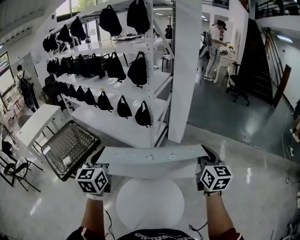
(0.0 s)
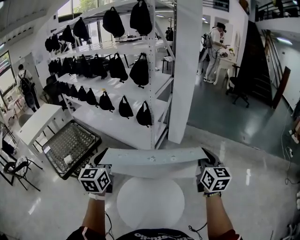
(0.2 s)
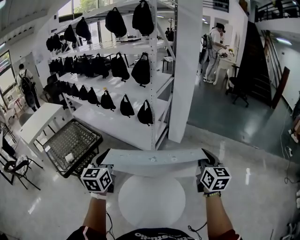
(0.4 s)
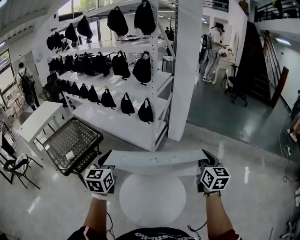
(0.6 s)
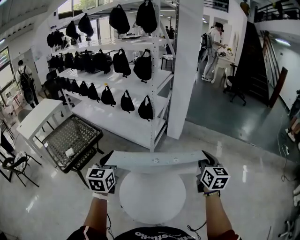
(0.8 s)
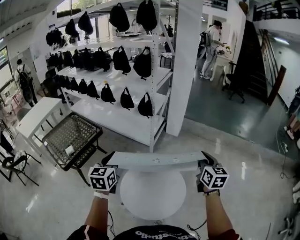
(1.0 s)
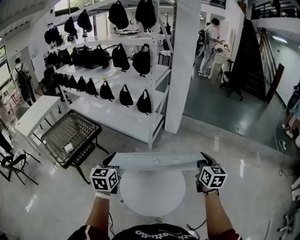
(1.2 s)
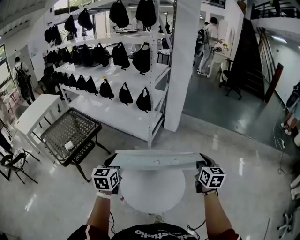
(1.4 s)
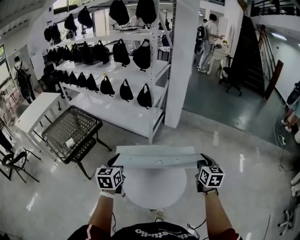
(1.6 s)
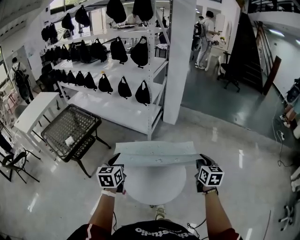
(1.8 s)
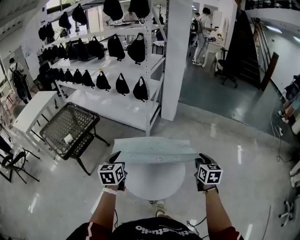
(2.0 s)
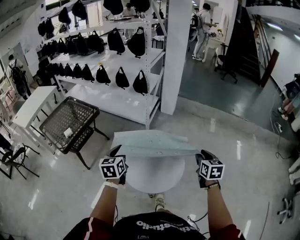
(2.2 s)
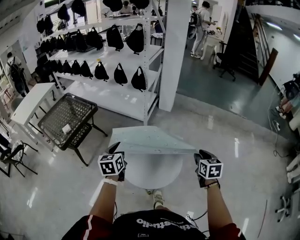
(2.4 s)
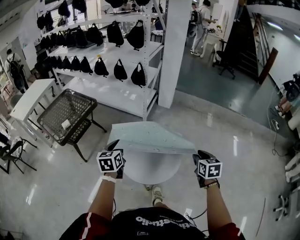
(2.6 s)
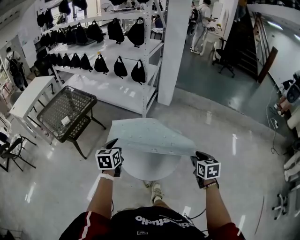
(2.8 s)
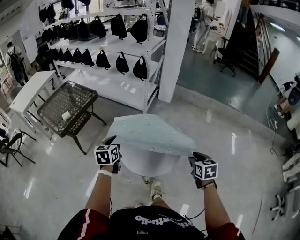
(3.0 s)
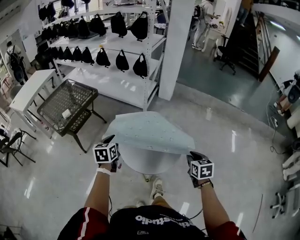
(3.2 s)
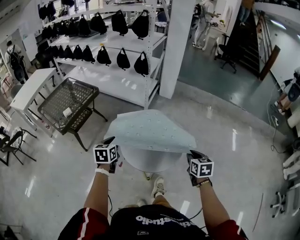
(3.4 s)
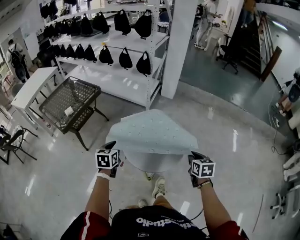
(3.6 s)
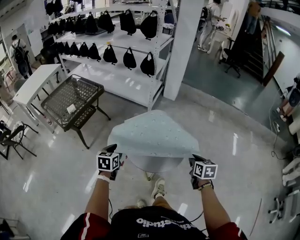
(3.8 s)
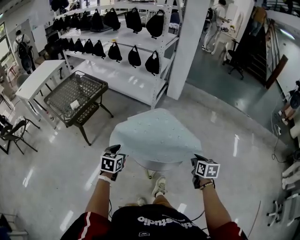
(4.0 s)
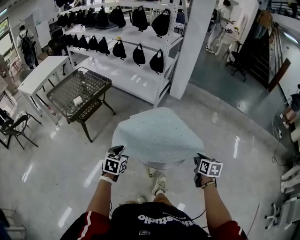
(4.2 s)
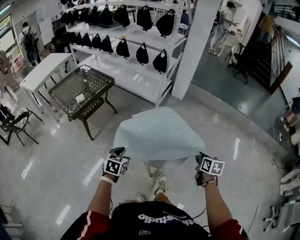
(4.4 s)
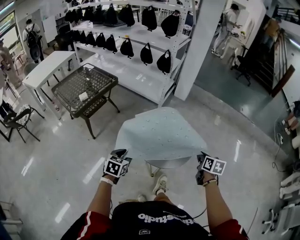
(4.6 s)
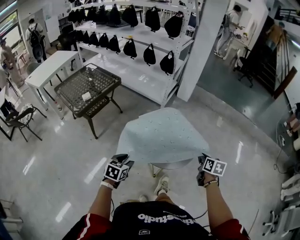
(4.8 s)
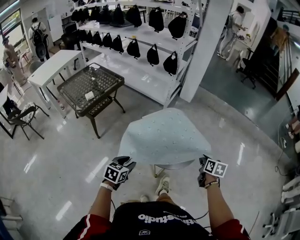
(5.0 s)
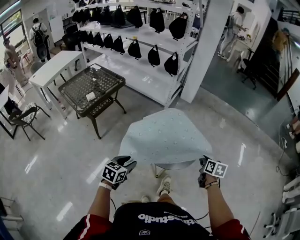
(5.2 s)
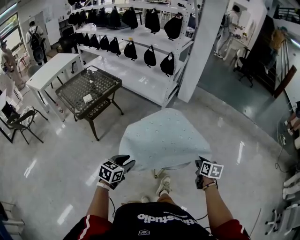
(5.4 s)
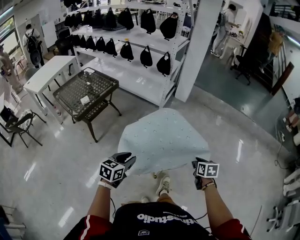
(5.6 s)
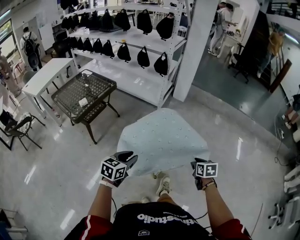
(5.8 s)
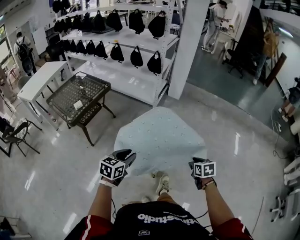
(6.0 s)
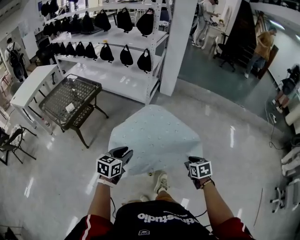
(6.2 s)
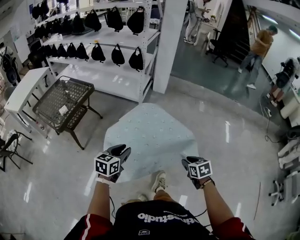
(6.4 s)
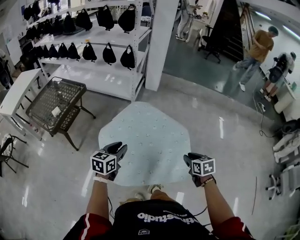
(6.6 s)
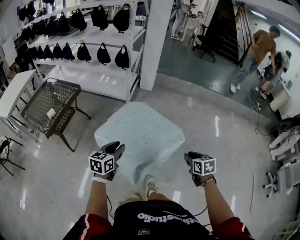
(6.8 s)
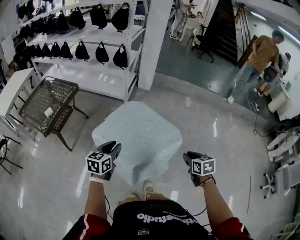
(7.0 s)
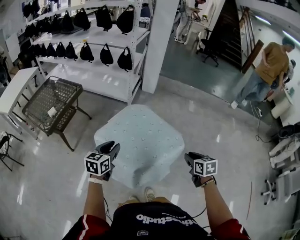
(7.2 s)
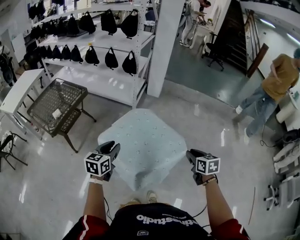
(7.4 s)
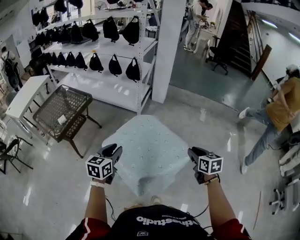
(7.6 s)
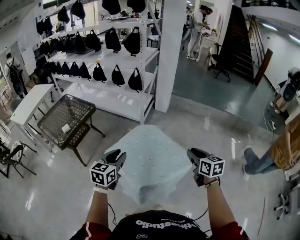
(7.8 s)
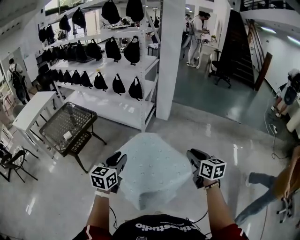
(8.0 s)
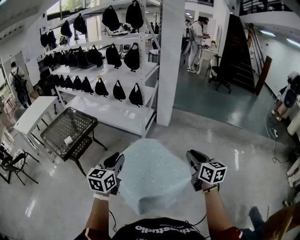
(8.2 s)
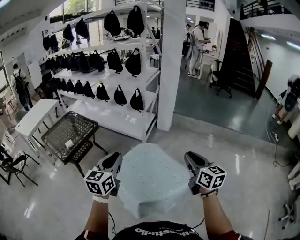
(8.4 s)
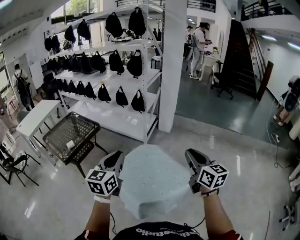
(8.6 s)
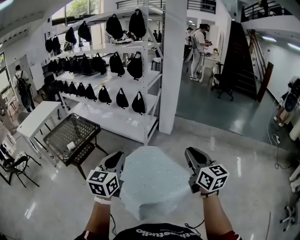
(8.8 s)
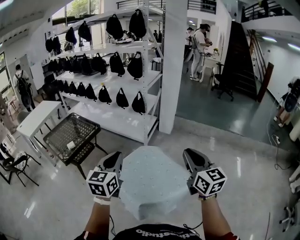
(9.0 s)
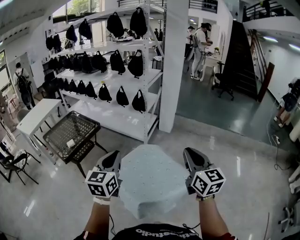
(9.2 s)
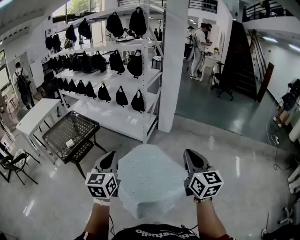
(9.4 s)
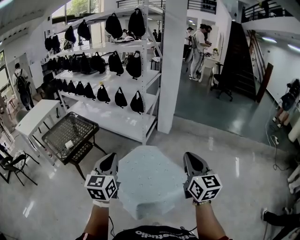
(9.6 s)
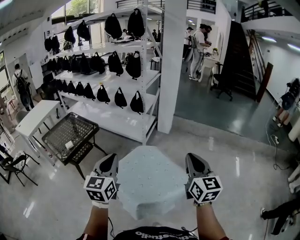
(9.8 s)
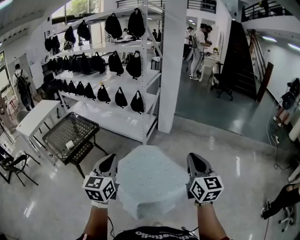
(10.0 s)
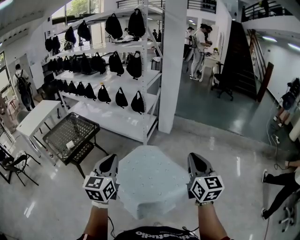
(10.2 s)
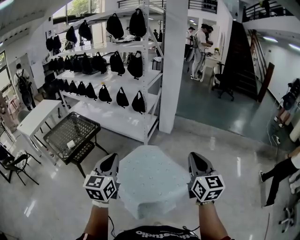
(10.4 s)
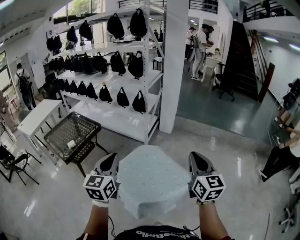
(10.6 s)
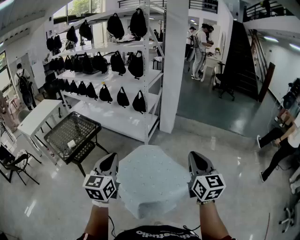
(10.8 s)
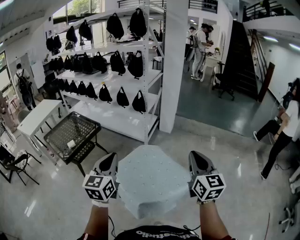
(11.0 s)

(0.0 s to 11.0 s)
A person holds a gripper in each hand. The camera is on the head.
0.0 s - 1.6 s: Both grippers travel together backward and downward, approximately 20 cm.
1.6 s - 3.2 s: The right gripper is displaced backward and downward by some 20 cm, and changes its angle by roughly 20 degrees. The left gripper travels downward and backward by some 15 cm.
3.2 s - 4.8 s: The right gripper changes place by some 5 cm. The left gripper travels backward and downward by about 20 cm, and opens.
4.8 s - 6.2 s: The right gripper travels backward by some 5 cm, and swivels some 20 degrees. Meanwhile the left gripper goes about 10 cm upward.
6.2 s - 7.8 s: The left gripper shifts some 15 cm upward and forward. Meanwhile the right gripper goes roughly 20 cm upward and forward, and turns by roughly 30 degrees.
7.8 s - 9.4 s: Both grippers move upward, roughly 15 cm. The left gripper swivels roughly 20 degrees, and closes; the right gripper rotates about 30 degrees, and closes up.
9.4 s - 11.0 s: The grippers make only small movements.

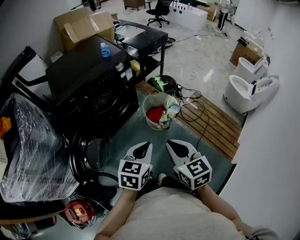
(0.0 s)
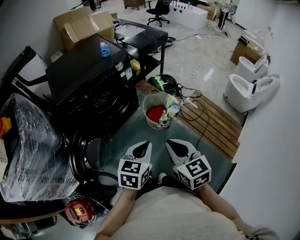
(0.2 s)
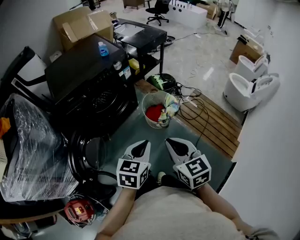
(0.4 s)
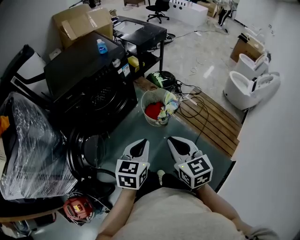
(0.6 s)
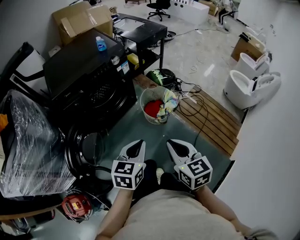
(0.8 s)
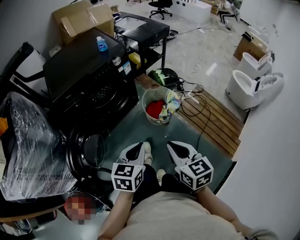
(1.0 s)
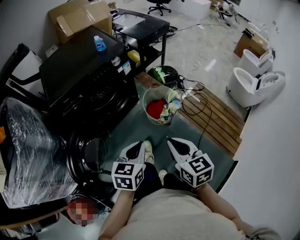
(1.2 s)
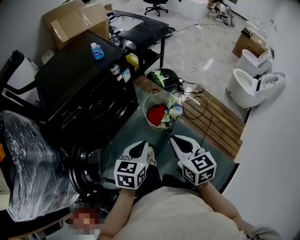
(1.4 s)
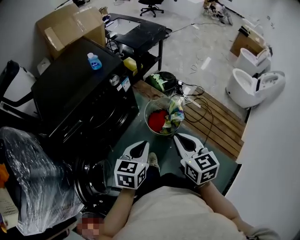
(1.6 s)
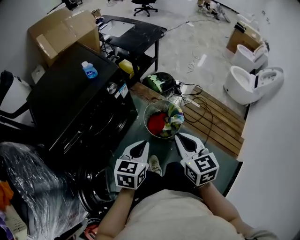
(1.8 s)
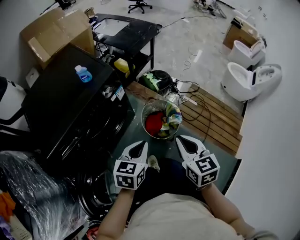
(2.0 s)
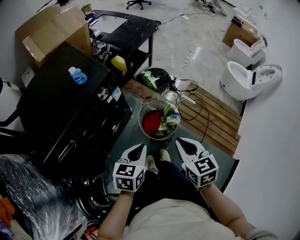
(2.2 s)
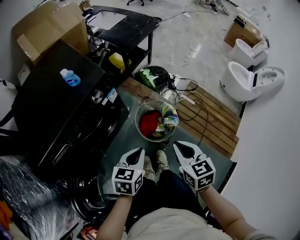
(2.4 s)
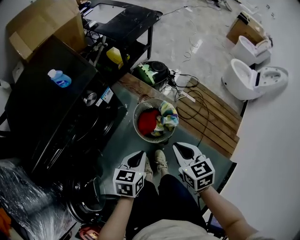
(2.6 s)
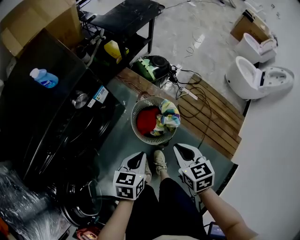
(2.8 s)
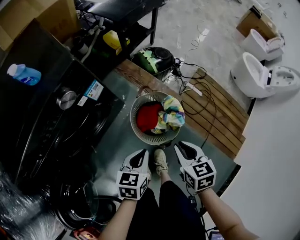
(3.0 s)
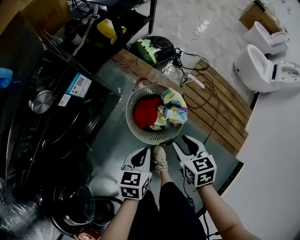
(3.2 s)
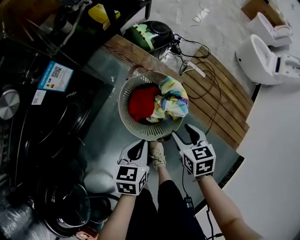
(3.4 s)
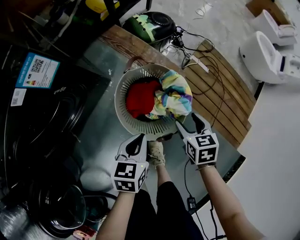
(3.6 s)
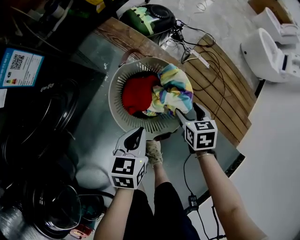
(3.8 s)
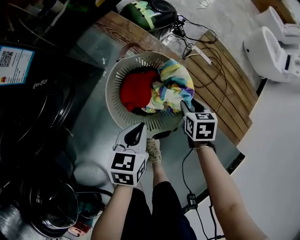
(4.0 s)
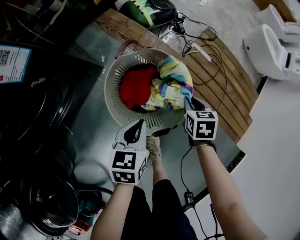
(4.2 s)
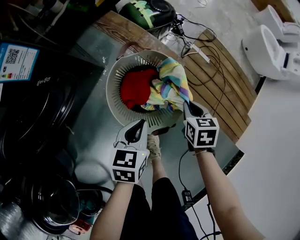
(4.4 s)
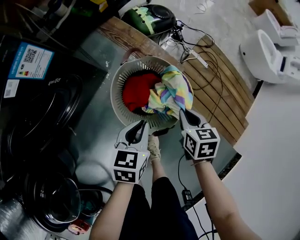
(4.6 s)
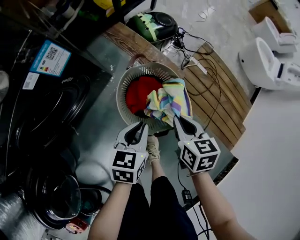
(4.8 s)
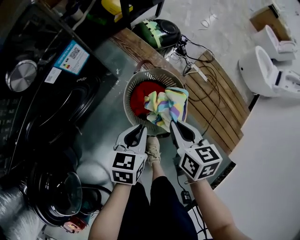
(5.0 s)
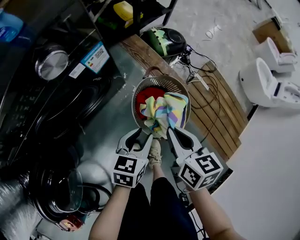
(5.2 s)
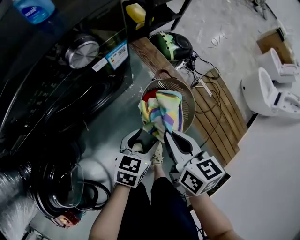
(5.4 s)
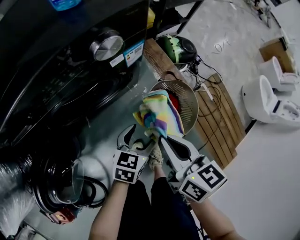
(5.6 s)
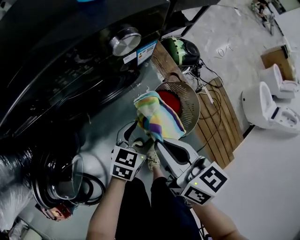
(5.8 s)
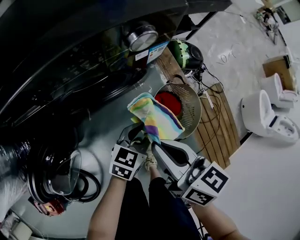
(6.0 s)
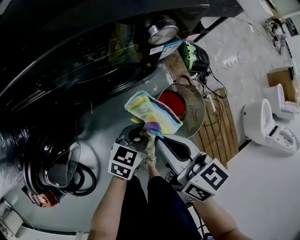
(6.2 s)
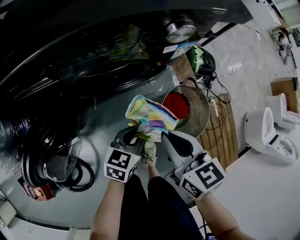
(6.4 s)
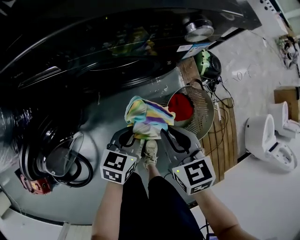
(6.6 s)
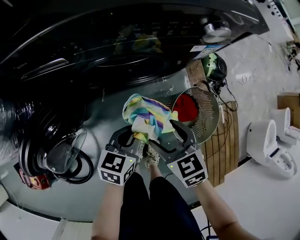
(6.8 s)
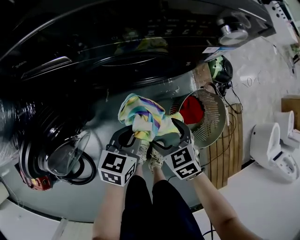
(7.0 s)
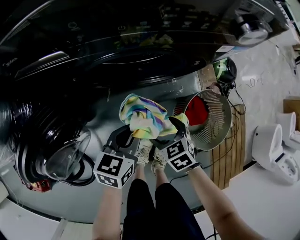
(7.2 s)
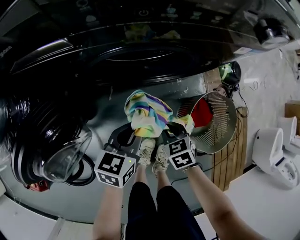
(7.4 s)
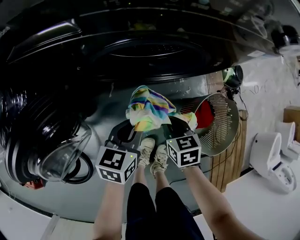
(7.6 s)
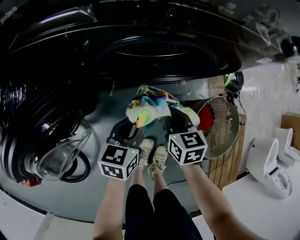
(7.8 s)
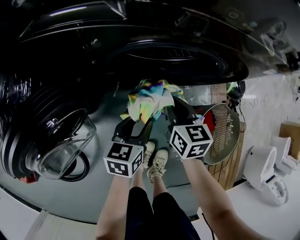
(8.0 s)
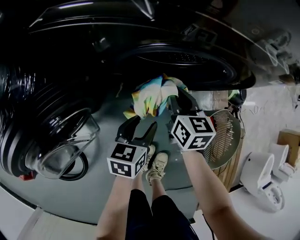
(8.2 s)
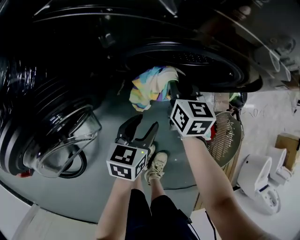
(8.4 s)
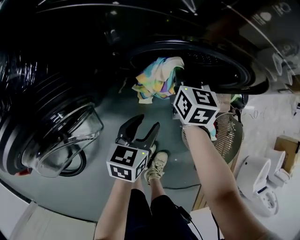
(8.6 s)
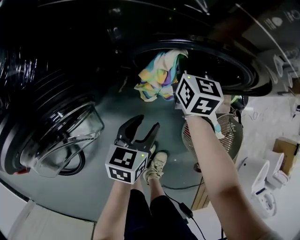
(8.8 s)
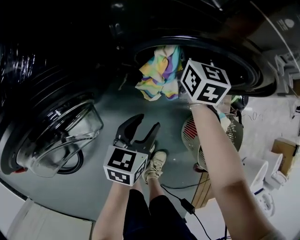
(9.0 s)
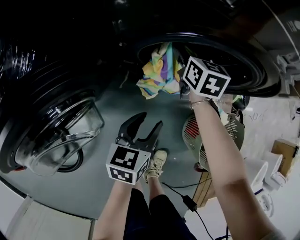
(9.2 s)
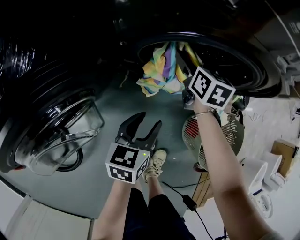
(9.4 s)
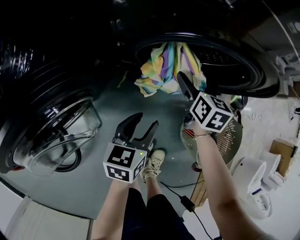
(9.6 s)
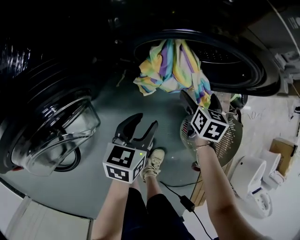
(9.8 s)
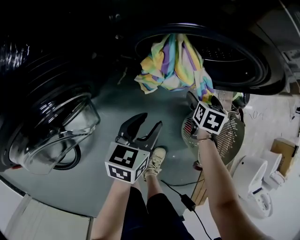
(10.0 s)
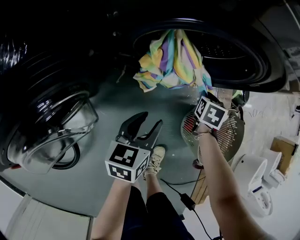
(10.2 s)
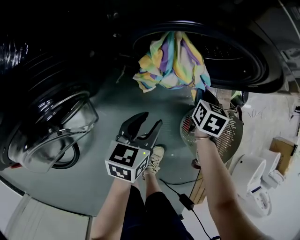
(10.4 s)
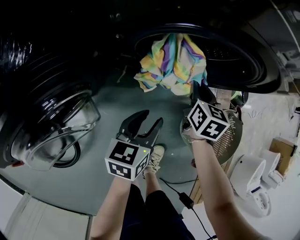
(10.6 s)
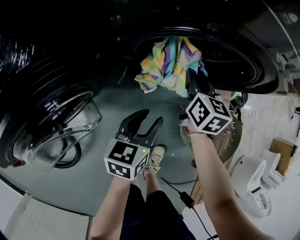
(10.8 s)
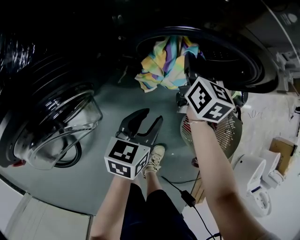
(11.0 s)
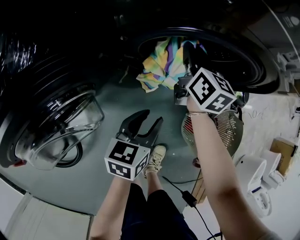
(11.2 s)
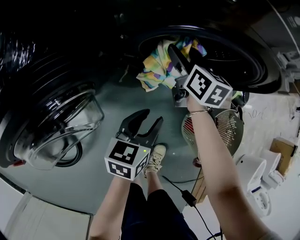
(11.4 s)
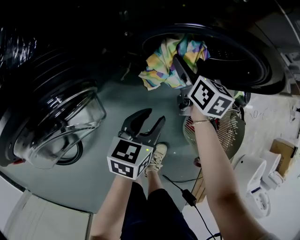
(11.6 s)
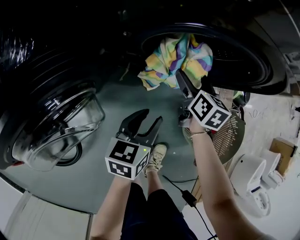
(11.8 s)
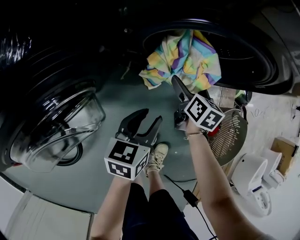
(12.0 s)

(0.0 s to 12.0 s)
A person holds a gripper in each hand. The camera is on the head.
0.0 s - 1.6 s: The grippers both shift forward by approximately 20 cm.
1.6 s - 3.0 s: Both grippers travel together downward and forward, about 30 cm. The right gripper swivels roughly 20 degrees.
3.0 s - 4.4 s: Both grippers travel together downward, roughly 25 cm. The right gripper opens, then closes once more.
4.4 s - 6.0 s: The left gripper travels upward by approximately 15 cm, and opens, then closes again. The right gripper goes roughly 35 cm upward, and tips its fingers upward by about 40 degrees.
6.0 s - 7.6 s: The right gripper is displaced downward by some 35 cm, points its fingers roughly 30 degrees further downward, and opens, then closes once more. Meanwhile the left gripper is displaced to the left and downward by about 25 cm, and turns by some 30 degrees.
7.6 s - 9.0 s: The left gripper moves to the left, approximately 5 cm, and opens up. Meanwhile the right gripper travels forward and to the left by some 30 cm, and turns by some 30 degrees.
9.0 s - 10.4 s: The right gripper shifts approximately 25 cm to the right, downward and backward, changes its angle by approximately 30 degrees, and opens, then closes once more.
10.4 s - 12.0 s: The right gripper moves to the left, approximately 10 cm, changes its angle by some 20 degrees, and opens up.
